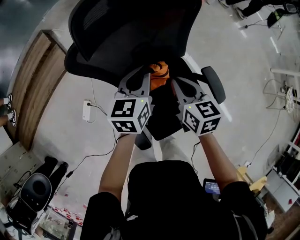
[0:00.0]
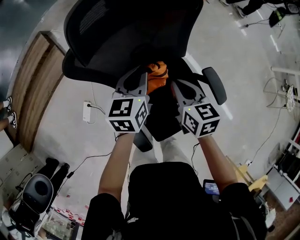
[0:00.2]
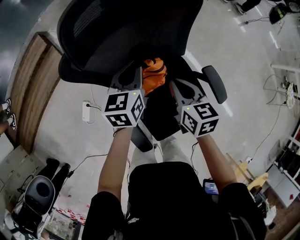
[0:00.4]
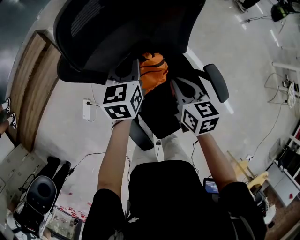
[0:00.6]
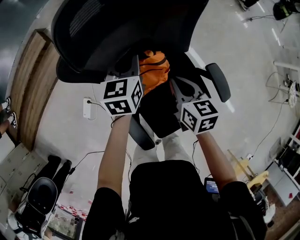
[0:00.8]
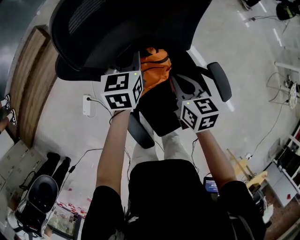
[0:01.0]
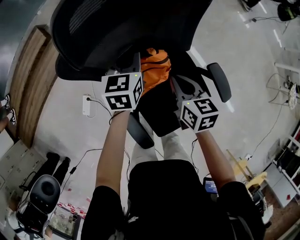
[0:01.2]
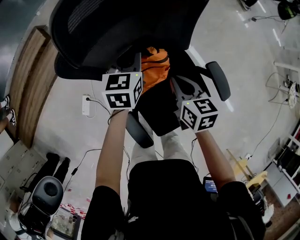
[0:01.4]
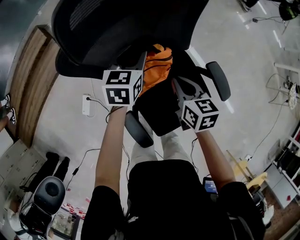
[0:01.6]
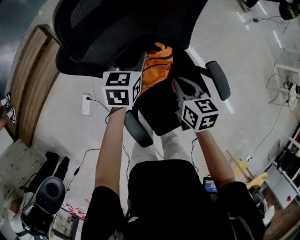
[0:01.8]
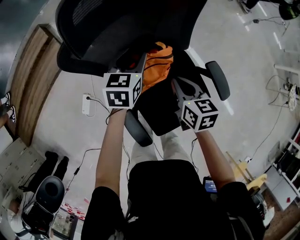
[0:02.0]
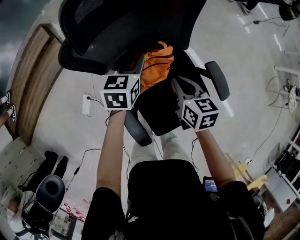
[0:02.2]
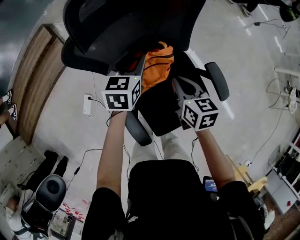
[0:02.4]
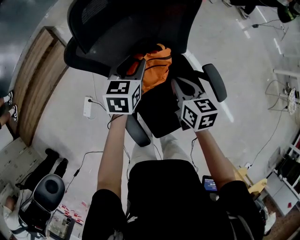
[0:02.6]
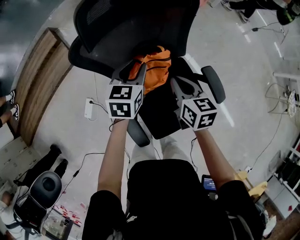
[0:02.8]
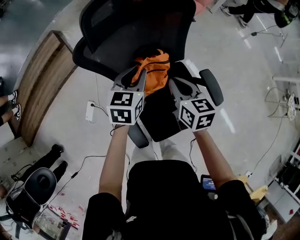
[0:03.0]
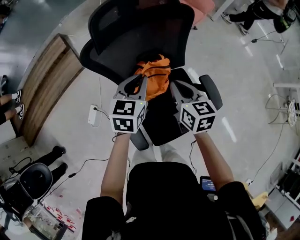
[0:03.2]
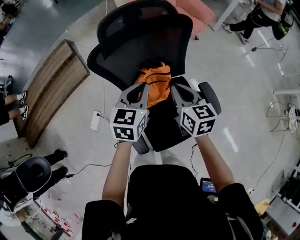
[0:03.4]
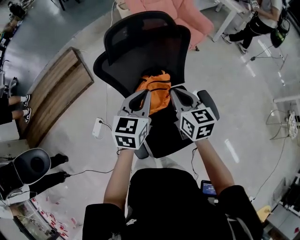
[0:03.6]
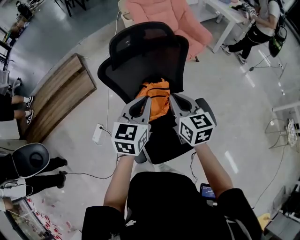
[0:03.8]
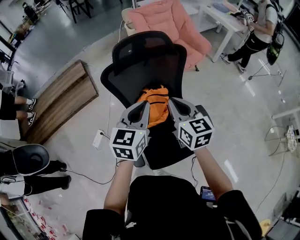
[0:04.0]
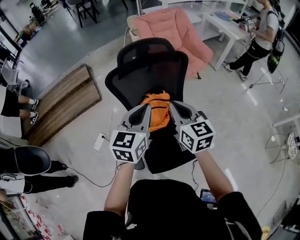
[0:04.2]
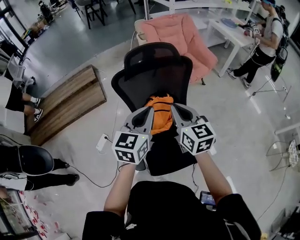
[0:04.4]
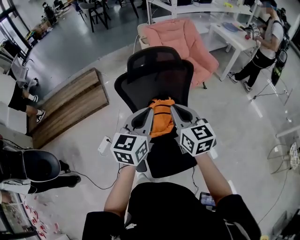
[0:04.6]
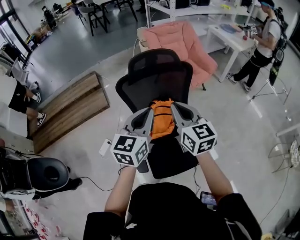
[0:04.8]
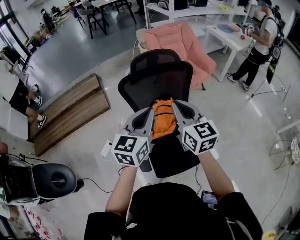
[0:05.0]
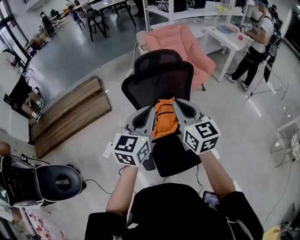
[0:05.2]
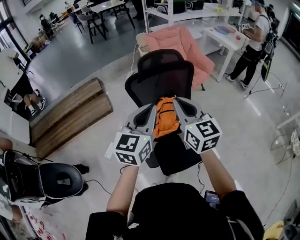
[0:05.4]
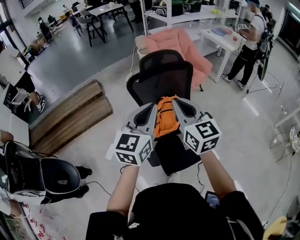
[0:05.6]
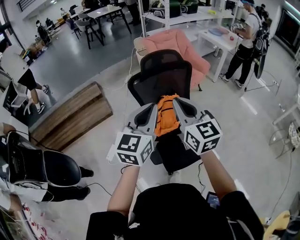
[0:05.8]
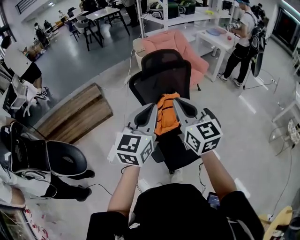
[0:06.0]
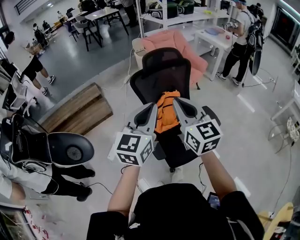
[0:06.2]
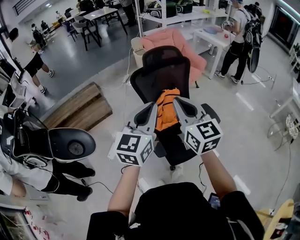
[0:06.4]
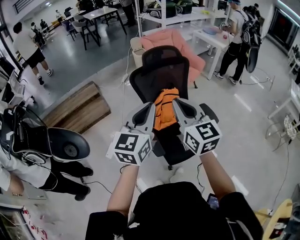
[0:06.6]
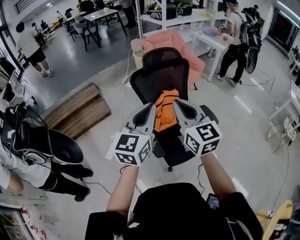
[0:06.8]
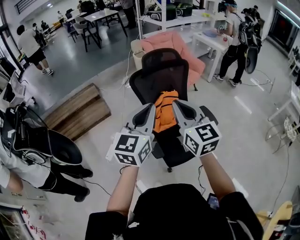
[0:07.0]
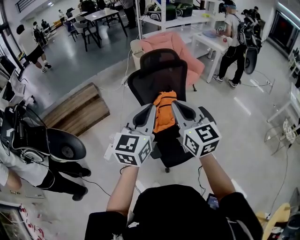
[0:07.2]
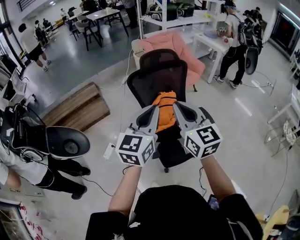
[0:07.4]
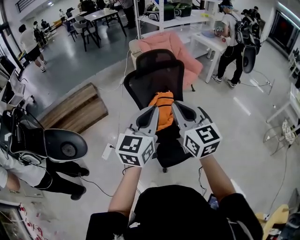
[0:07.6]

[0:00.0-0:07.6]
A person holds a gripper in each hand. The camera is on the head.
0:00.0 to 0:01.6: The left gripper shifts approximately 10 cm downward and forward, and opens up. Meanwhile the right gripper moves downward, about 5 cm.
0:01.6 to 0:03.0: The right gripper shifts approximately 10 cm upward; the left gripper shifts some 10 cm backward and upward.
0:03.0 to 0:04.6: The left gripper is displaced upward and backward by some 30 cm, turns by some 20 degrees, and closes up; the right gripper heads upward, covering some 25 cm, and rotates some 30 degrees.
0:04.6 to 0:06.0: Both grippers move backward, upward and to the left, approximately 25 cm.
0:06.0 to 0:07.6: The right gripper travels backward by about 5 cm, while the left gripper changes place by approximately 5 cm.

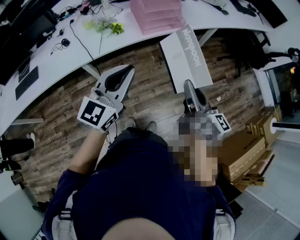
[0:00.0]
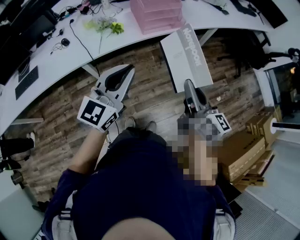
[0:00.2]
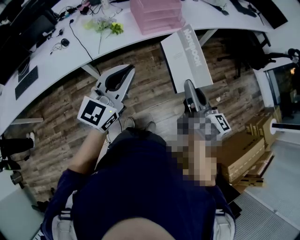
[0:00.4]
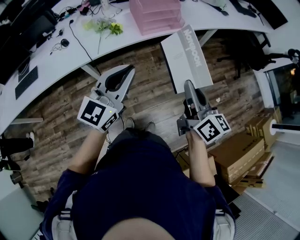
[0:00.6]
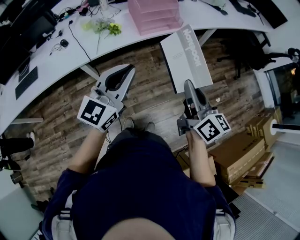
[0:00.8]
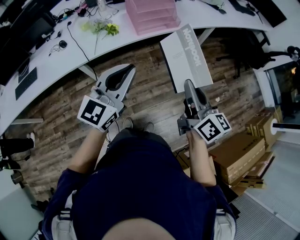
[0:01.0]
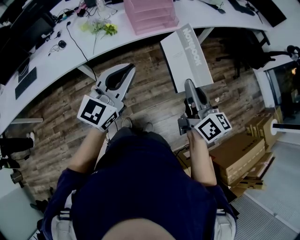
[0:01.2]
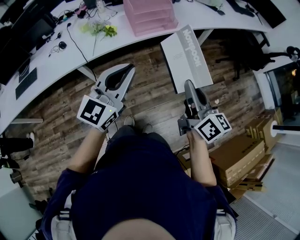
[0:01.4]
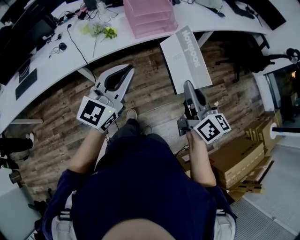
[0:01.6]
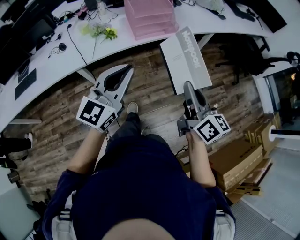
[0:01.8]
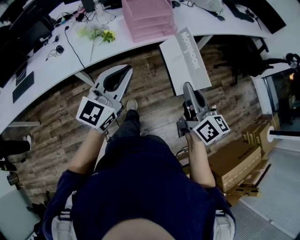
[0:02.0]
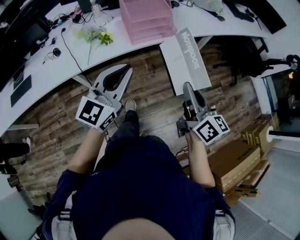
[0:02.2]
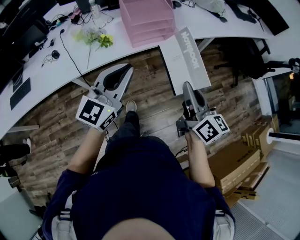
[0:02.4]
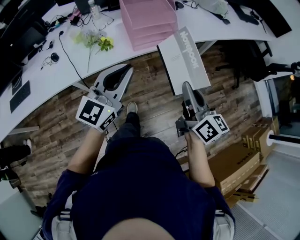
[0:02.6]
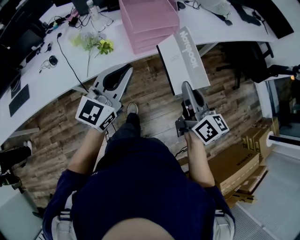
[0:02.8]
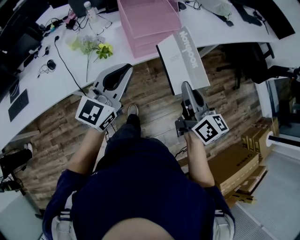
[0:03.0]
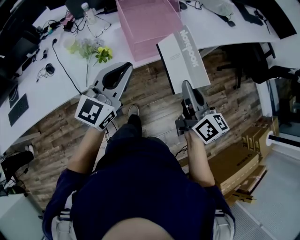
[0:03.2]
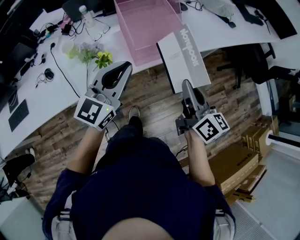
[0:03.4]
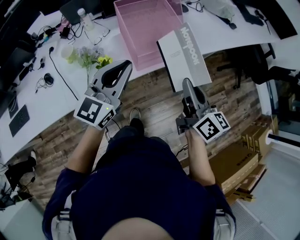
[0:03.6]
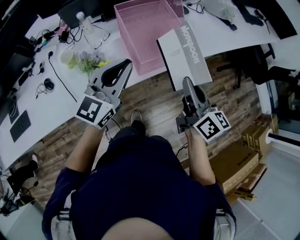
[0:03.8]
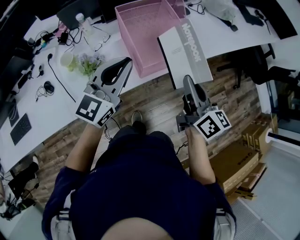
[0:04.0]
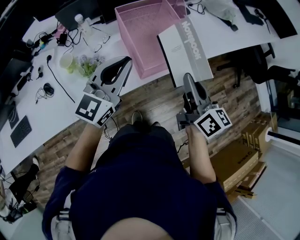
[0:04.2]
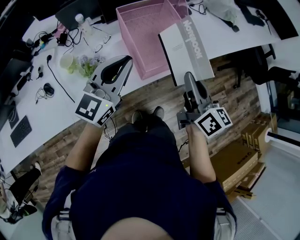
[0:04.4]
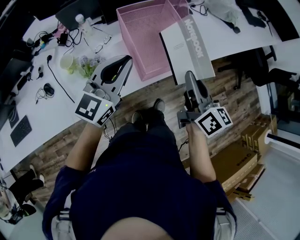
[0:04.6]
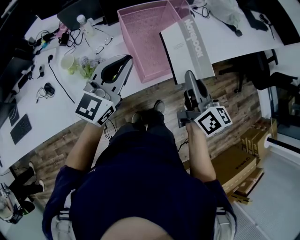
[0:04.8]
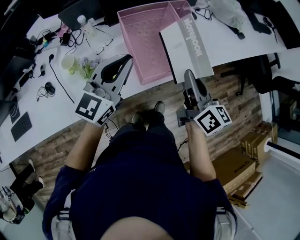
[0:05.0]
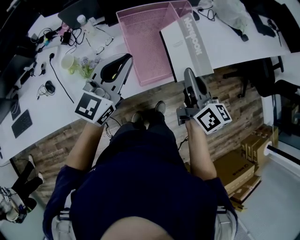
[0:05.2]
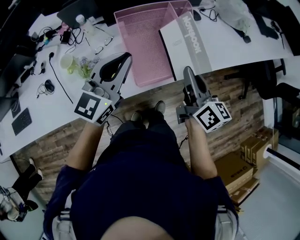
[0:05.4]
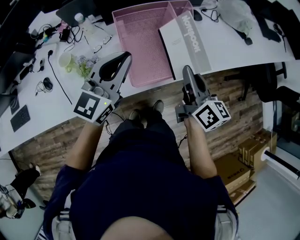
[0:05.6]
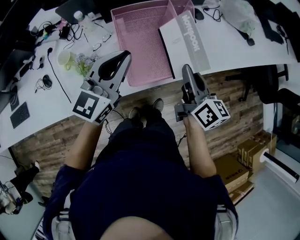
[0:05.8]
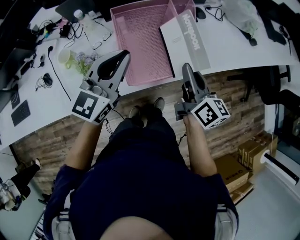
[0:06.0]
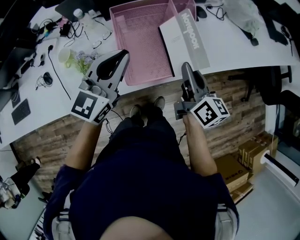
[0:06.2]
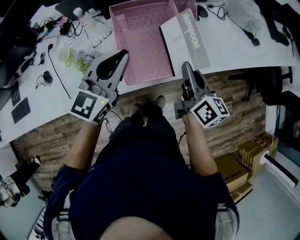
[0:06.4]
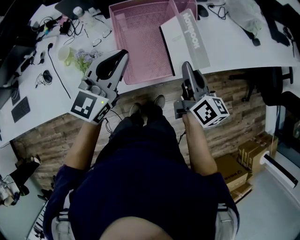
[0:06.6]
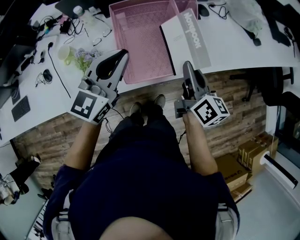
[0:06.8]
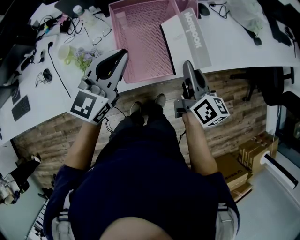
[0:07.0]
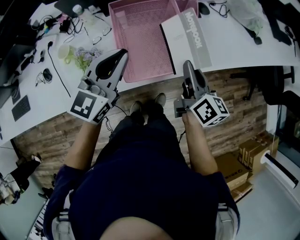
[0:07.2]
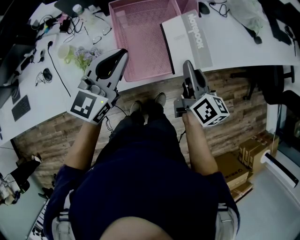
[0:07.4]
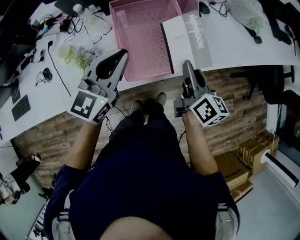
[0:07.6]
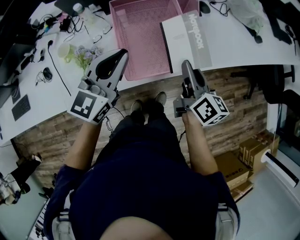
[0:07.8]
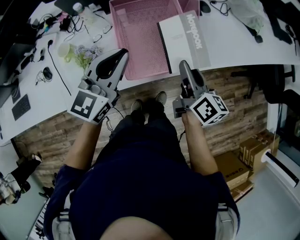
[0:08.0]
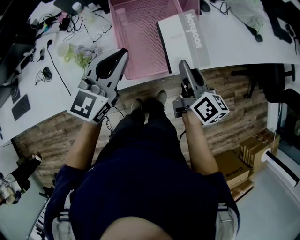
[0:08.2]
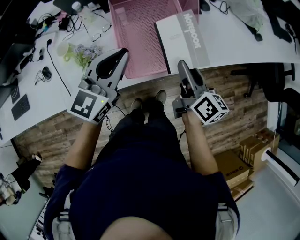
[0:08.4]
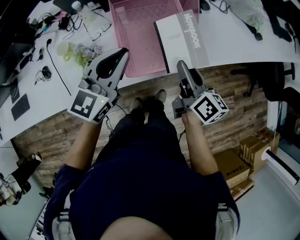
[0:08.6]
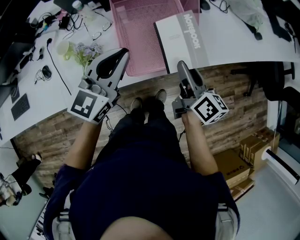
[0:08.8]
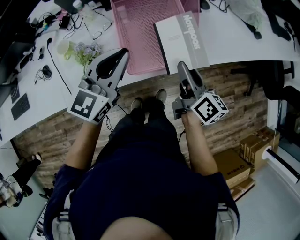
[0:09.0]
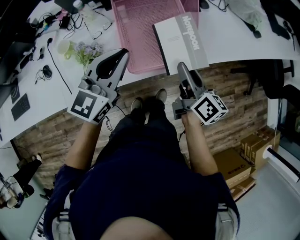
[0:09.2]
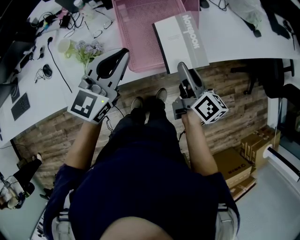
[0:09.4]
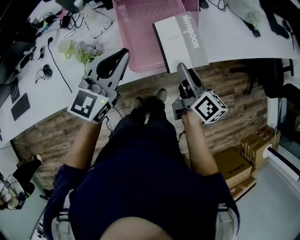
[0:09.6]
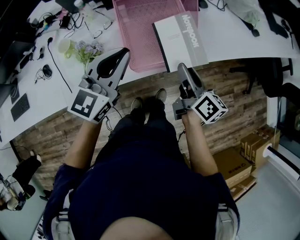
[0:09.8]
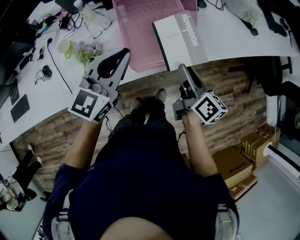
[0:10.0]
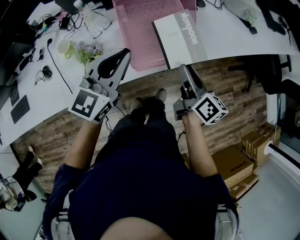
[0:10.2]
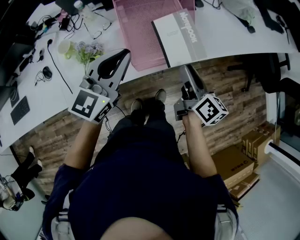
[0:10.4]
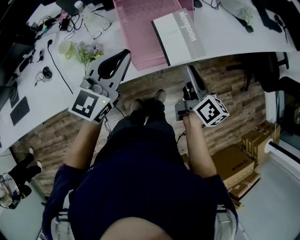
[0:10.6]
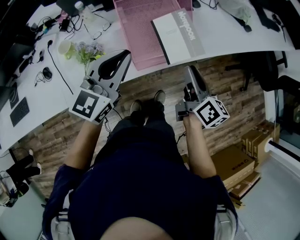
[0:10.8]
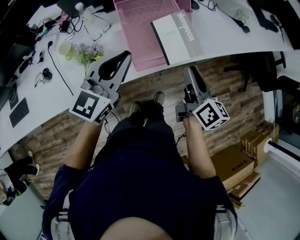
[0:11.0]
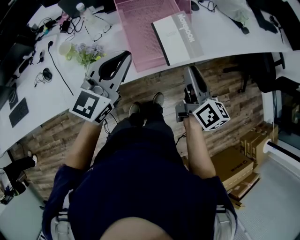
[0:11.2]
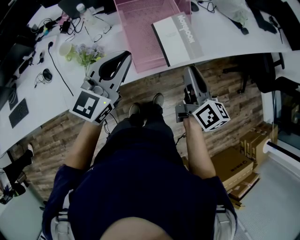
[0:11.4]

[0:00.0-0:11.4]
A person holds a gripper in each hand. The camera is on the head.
0:00.0 to 0:01.4: The two grippers go approximately 5 cm to the right.
0:01.4 to 0:02.8: The grippers both shift forward by approximately 20 cm.
0:02.8 to 0:04.2: Both grippers move forward and to the left, roughly 20 cm.
0:04.2 to 0:05.6: The two grippers go some 10 cm forward.
0:05.6 to 0:07.2: The right gripper ends up roughly 5 cm from where it was.
0:07.2 to 0:08.6: The right gripper opens up.
0:08.6 to 0:10.0: The grippers stay close to where they were, moving slightly.
0:10.0 to 0:11.4: The right gripper is displaced upward by about 5 cm.

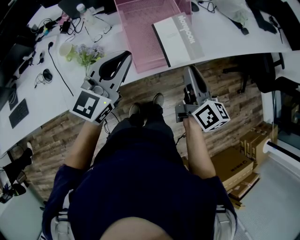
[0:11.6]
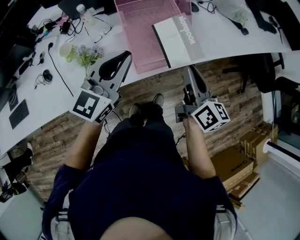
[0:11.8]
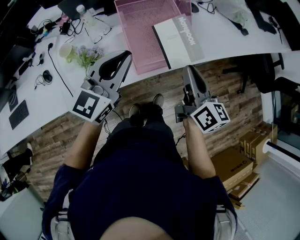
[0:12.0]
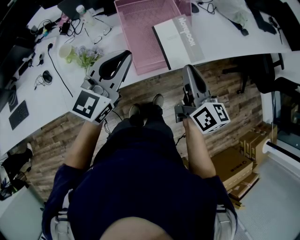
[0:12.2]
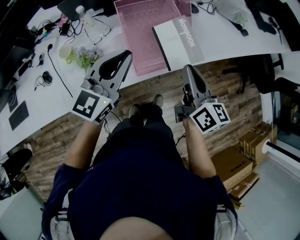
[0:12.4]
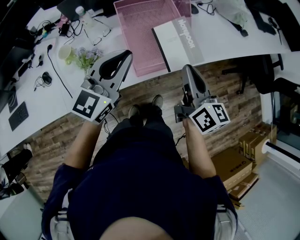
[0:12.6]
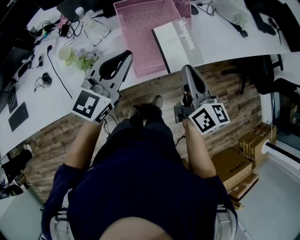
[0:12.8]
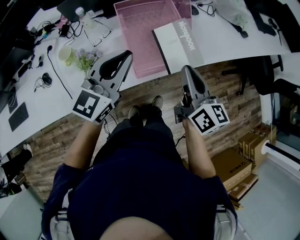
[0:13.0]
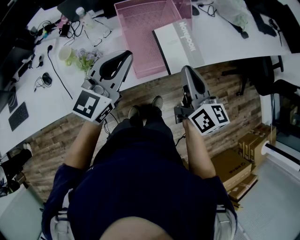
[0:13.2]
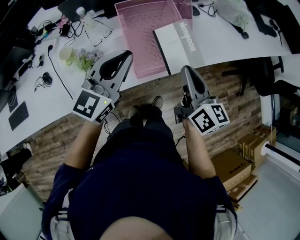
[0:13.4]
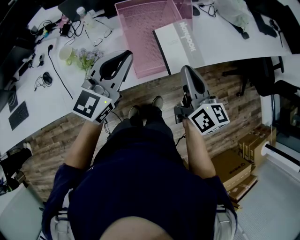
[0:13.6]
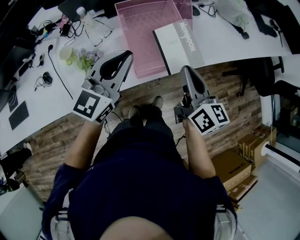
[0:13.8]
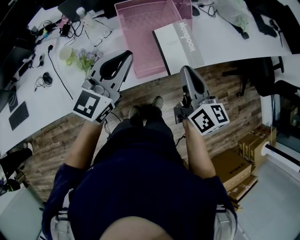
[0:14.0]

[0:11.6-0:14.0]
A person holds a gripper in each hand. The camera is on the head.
0:11.6 to 0:12.8: The grippers make only small movements.
0:12.8 to 0:14.0: Both grippers stay put.

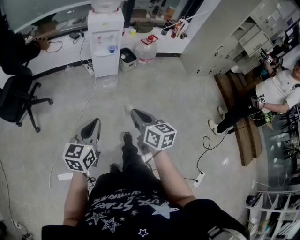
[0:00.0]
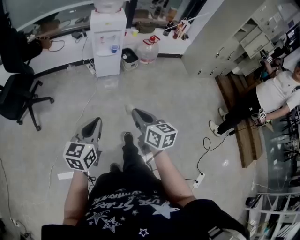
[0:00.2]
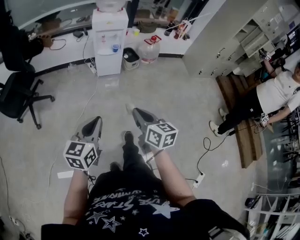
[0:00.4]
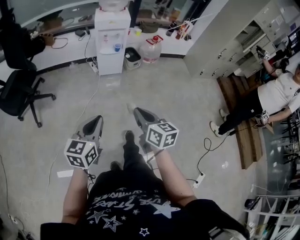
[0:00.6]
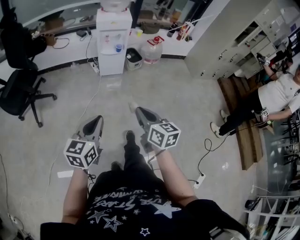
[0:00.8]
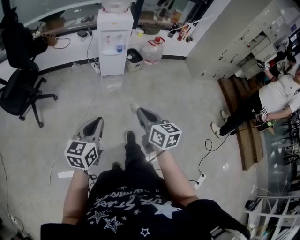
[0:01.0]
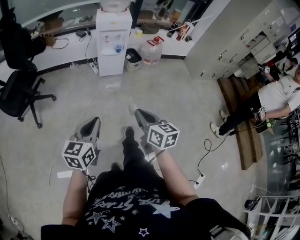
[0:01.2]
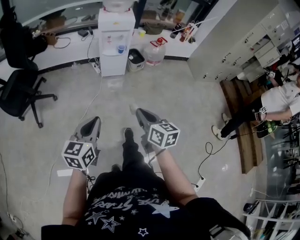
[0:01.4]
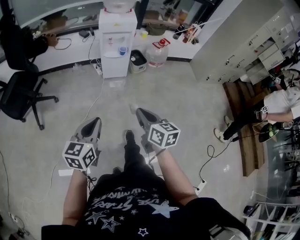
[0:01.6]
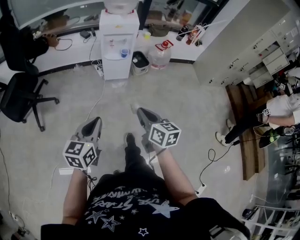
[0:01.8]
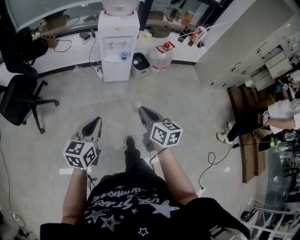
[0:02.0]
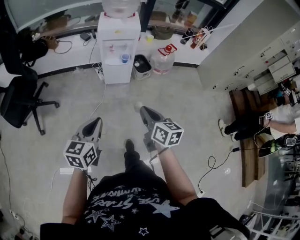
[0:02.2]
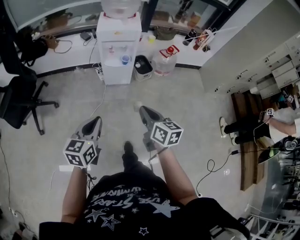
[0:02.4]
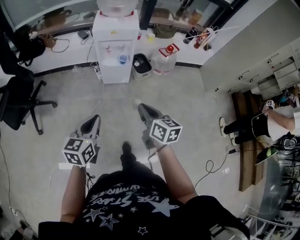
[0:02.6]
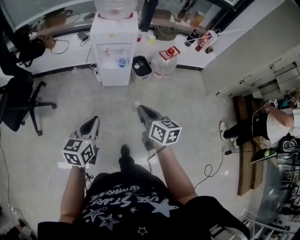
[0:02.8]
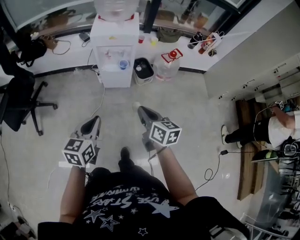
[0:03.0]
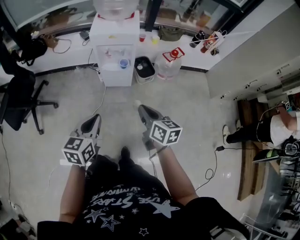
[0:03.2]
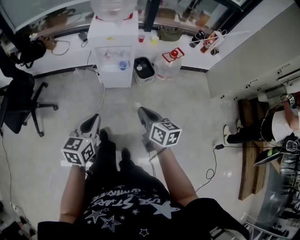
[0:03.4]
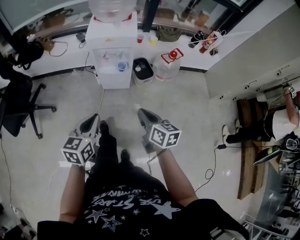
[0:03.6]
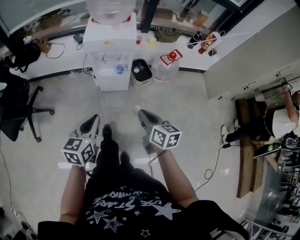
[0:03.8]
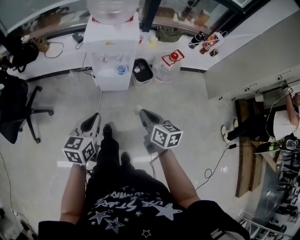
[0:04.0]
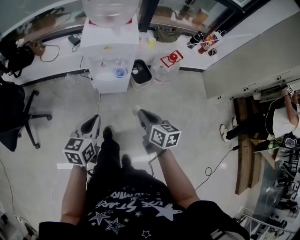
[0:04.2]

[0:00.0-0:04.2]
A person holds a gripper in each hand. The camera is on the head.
0:00.0 to 0:01.4: The grippers move only a little.
0:01.4 to 0:02.8: The two grippers go roughly 30 cm forward.
0:02.8 to 0:04.2: Both grippers travel together forward, some 15 cm.
